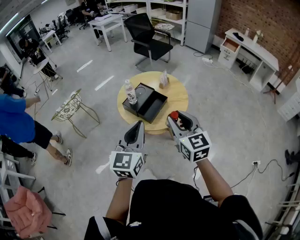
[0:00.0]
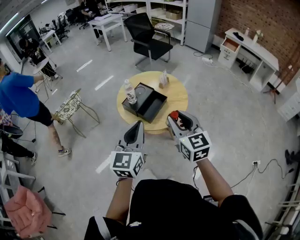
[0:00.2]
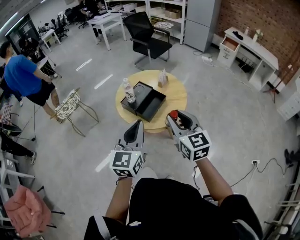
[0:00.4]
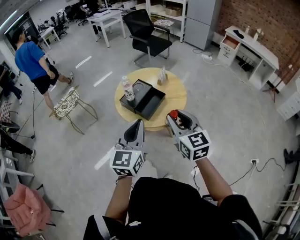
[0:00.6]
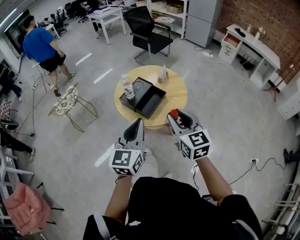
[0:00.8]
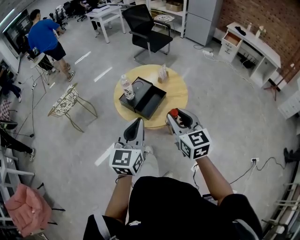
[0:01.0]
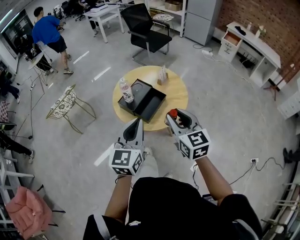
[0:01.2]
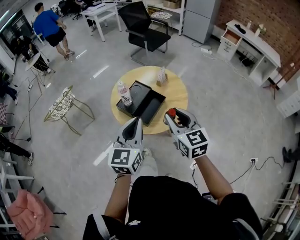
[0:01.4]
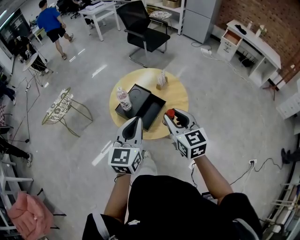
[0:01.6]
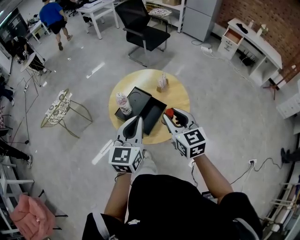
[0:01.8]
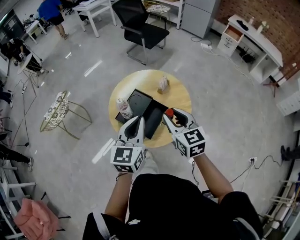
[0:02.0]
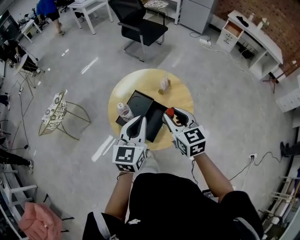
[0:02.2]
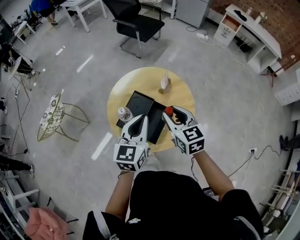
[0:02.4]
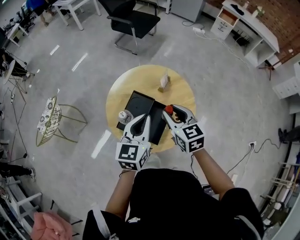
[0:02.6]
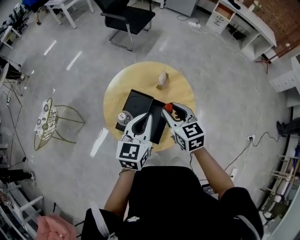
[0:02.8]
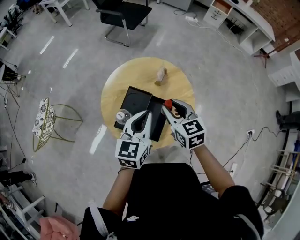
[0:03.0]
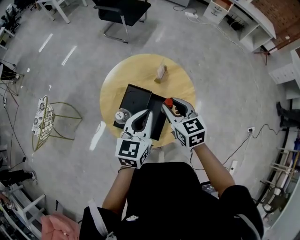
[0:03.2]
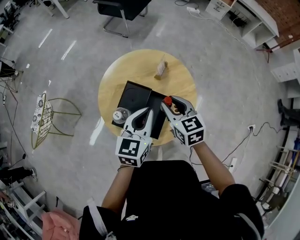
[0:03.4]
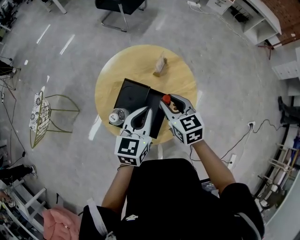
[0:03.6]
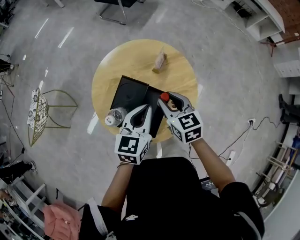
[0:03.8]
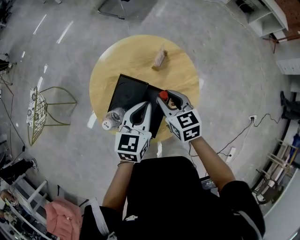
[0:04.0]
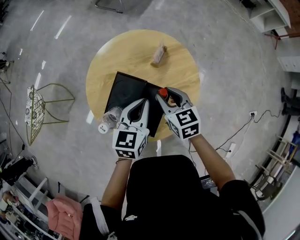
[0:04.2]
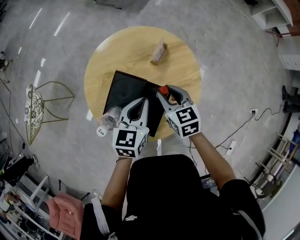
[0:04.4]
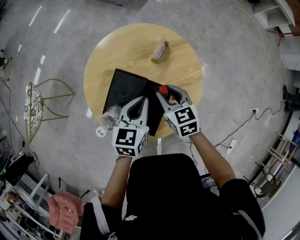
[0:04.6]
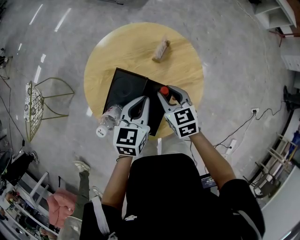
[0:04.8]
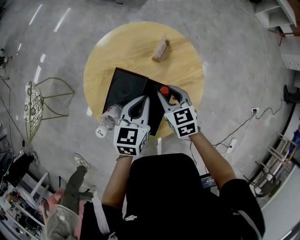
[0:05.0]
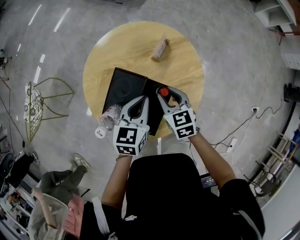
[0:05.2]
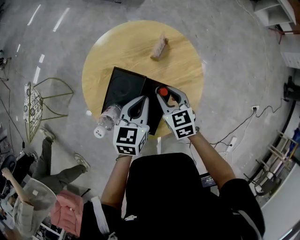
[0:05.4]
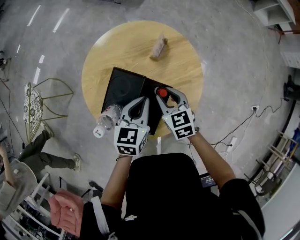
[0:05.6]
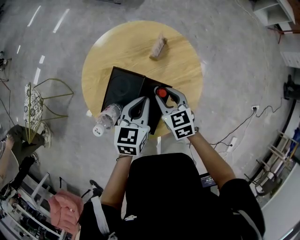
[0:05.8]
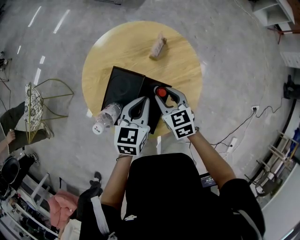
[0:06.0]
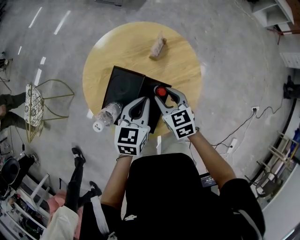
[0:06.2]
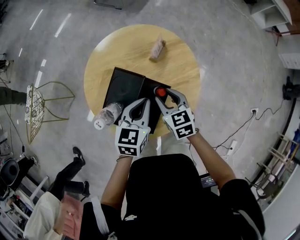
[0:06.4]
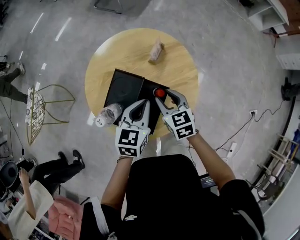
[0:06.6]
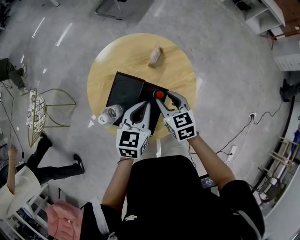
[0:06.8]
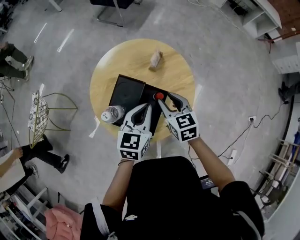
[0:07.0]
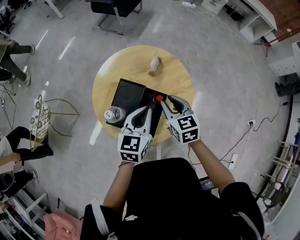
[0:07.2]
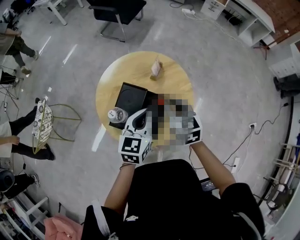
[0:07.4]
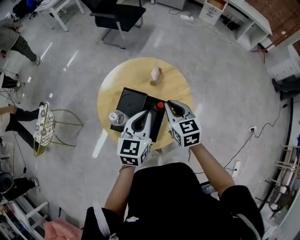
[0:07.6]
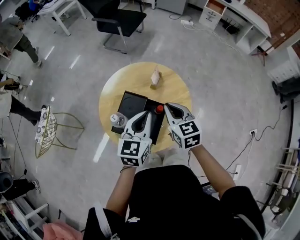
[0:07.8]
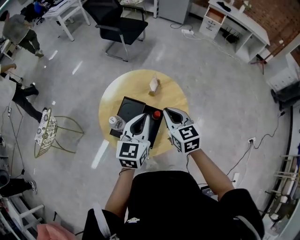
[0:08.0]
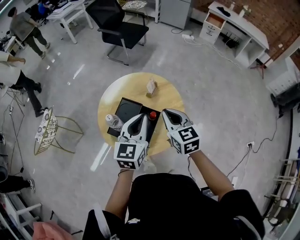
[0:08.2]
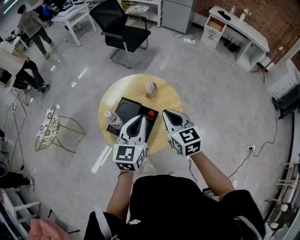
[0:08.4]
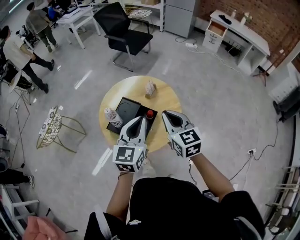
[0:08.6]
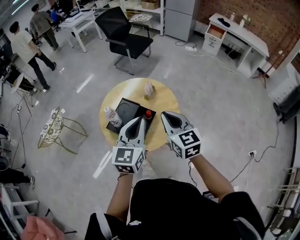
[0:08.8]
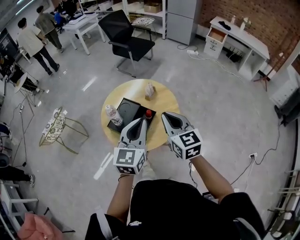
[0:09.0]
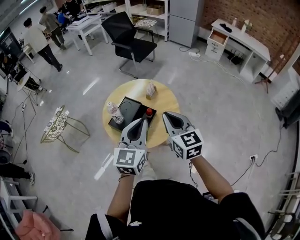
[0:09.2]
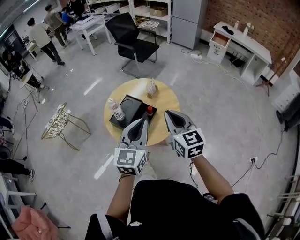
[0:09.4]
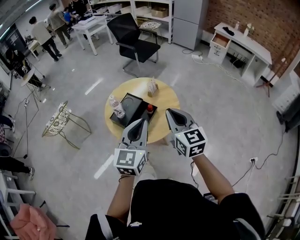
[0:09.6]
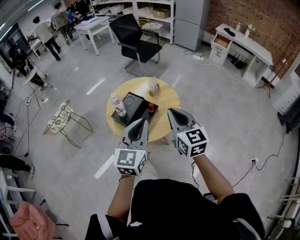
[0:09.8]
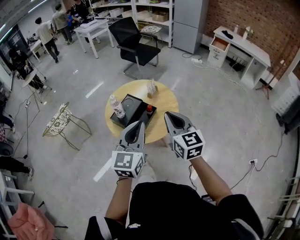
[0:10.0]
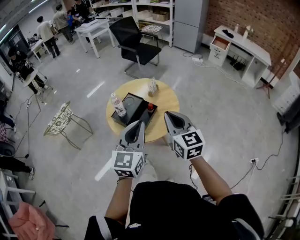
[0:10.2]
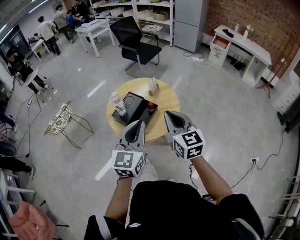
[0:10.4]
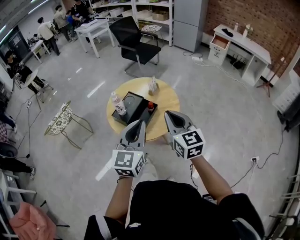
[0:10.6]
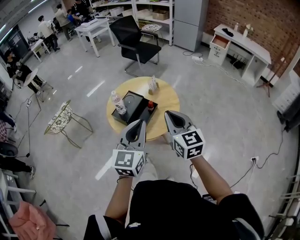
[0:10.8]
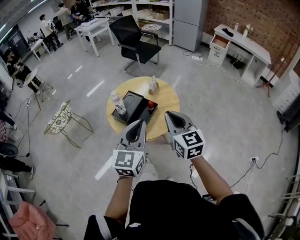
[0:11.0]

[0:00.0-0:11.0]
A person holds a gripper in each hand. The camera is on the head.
0:00.0 to 0:01.6: Both grippers travel together forward, some 15 cm.
0:01.6 to 0:03.2: The grippers both shift forward and downward by approximately 20 cm. The left gripper changes its angle by approximately 20 degrees.
0:03.2 to 0:04.8: The right gripper goes some 15 cm downward. Meanwhile the left gripper moves downward and forward, approximately 15 cm.
0:04.8 to 0:06.2: The grippers stay close to where they were, moving slightly.
0:06.2 to 0:07.8: The grippers both shift upward by approximately 15 cm. The right gripper closes its fingers.
0:07.8 to 0:09.4: The left gripper moves backward and upward, approximately 25 cm; the right gripper travels backward, upward and to the right by about 25 cm, and rotates roughly 20 degrees.
0:09.4 to 0:11.0: Both grippers travel together backward, approximately 5 cm.

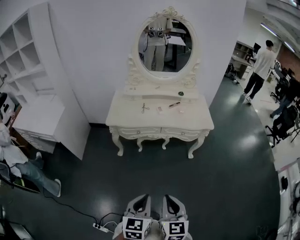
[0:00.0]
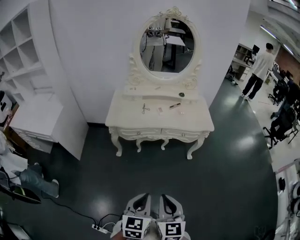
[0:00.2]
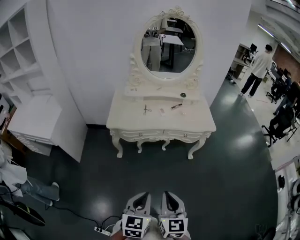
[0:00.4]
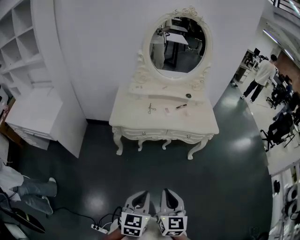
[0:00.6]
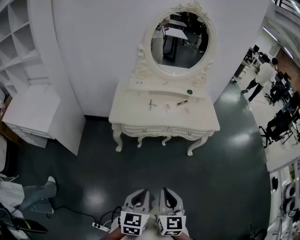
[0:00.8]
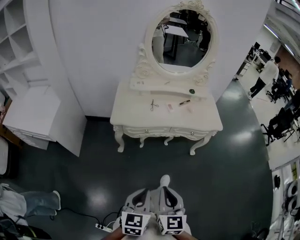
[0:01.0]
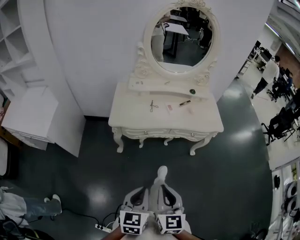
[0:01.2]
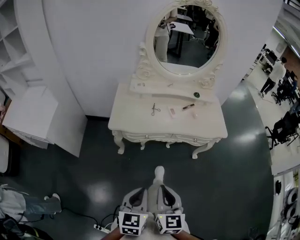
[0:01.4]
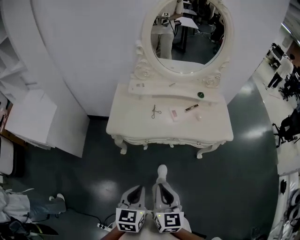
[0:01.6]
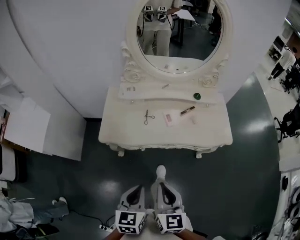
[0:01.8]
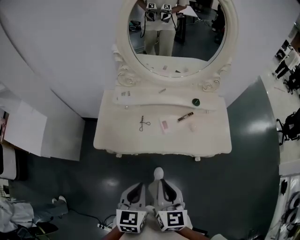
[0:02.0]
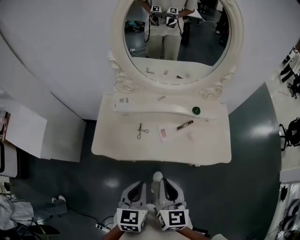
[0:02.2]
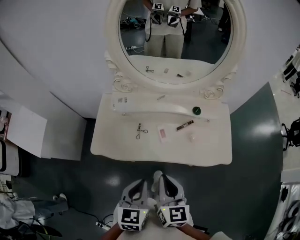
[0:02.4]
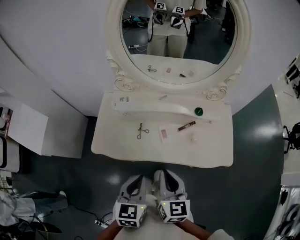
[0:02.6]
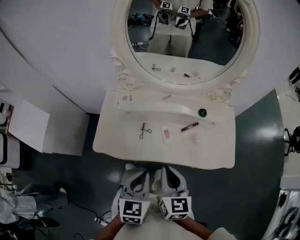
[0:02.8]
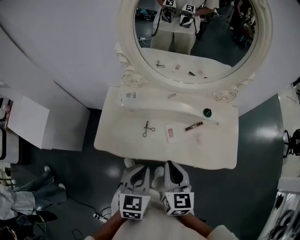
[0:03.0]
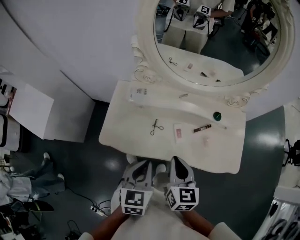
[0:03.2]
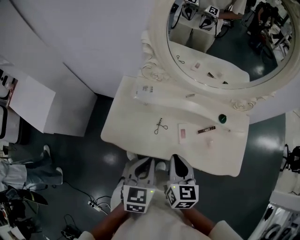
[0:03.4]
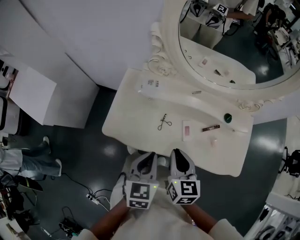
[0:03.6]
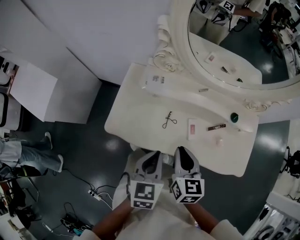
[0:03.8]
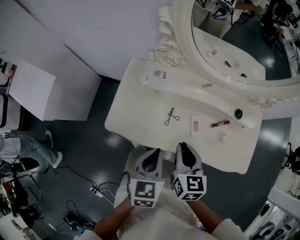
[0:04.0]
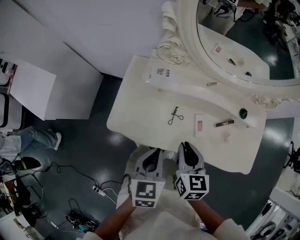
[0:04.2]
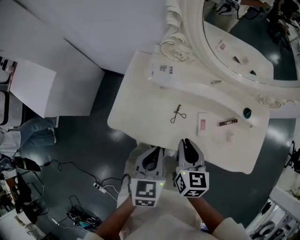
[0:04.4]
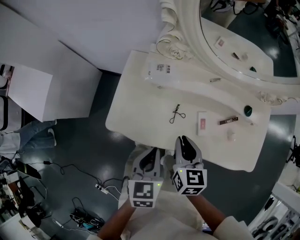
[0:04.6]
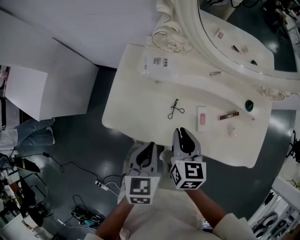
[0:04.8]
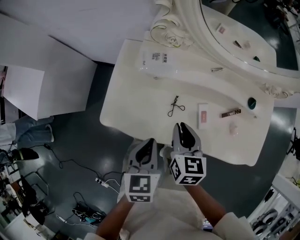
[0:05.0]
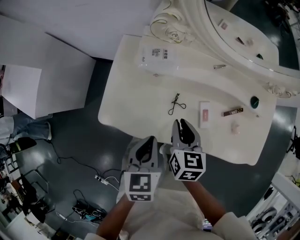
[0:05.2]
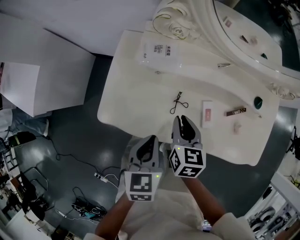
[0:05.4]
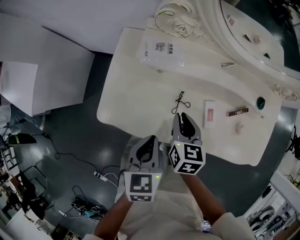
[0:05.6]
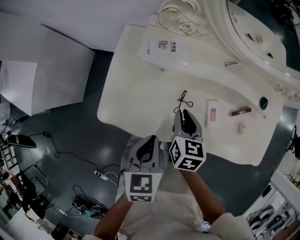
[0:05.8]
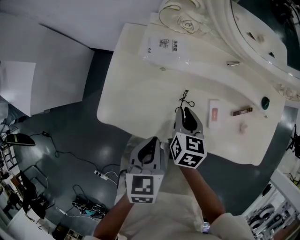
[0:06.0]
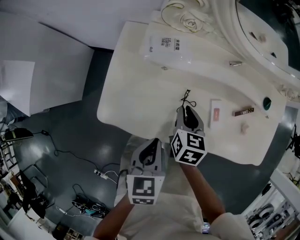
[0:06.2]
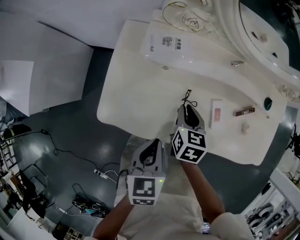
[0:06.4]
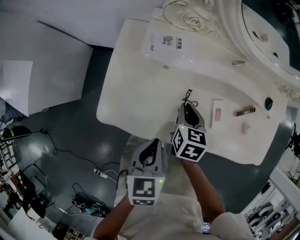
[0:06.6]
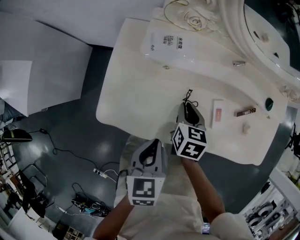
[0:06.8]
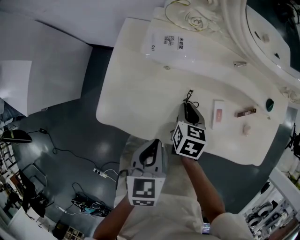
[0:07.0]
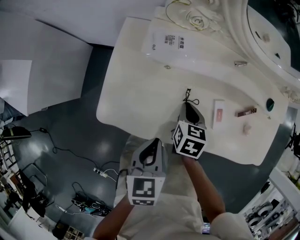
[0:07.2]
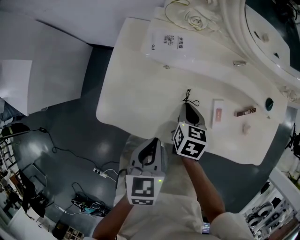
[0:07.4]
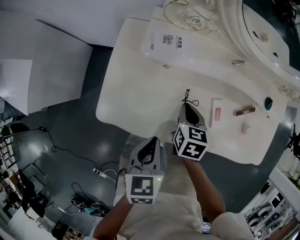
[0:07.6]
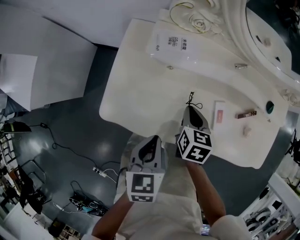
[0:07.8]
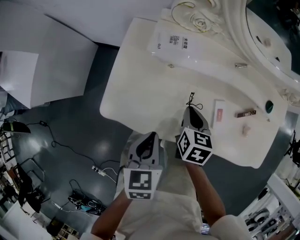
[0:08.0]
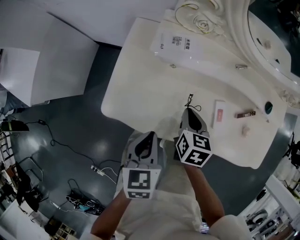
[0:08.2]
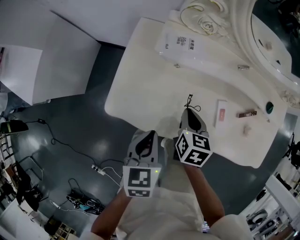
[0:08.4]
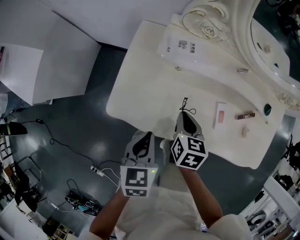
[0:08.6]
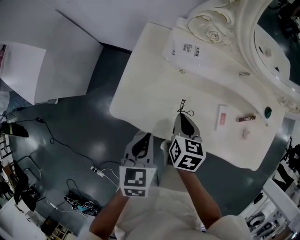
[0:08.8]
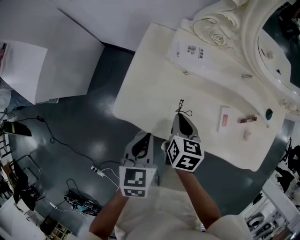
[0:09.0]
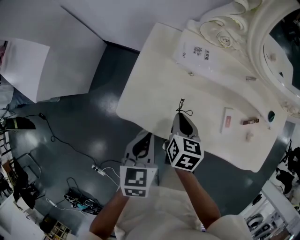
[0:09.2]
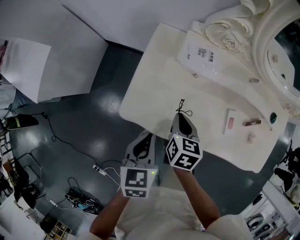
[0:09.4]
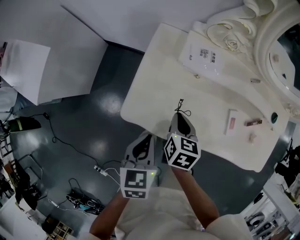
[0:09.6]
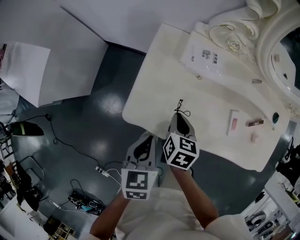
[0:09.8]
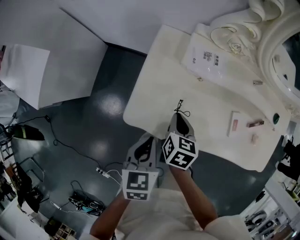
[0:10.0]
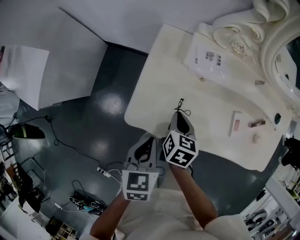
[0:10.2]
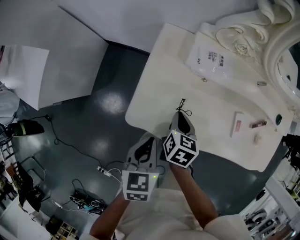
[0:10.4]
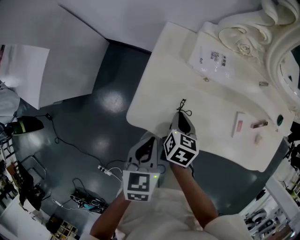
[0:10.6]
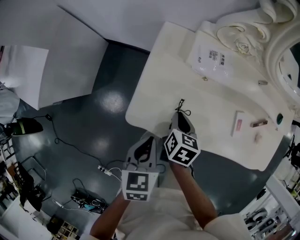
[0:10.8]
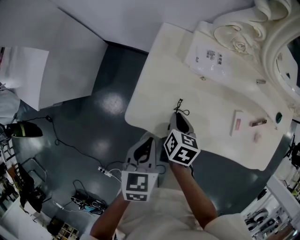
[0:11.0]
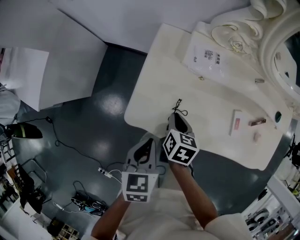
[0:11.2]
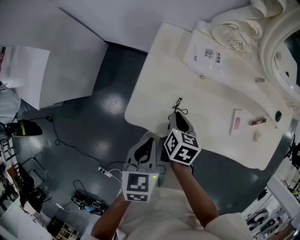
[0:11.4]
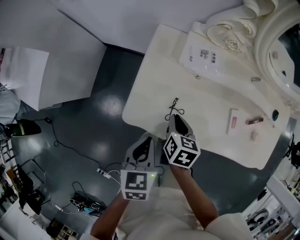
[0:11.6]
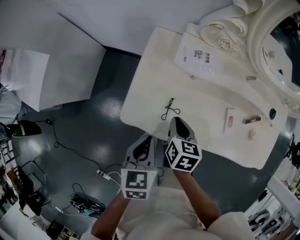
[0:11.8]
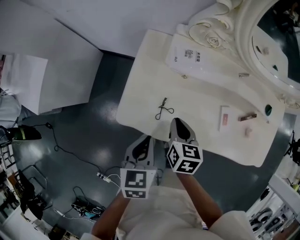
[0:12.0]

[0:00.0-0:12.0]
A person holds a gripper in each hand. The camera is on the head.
0:00.0 to 0:01.6: The two grippers go some 30 cm forward and to the left.
0:01.6 to 0:03.0: Both grippers move forward, some 30 cm.
0:03.0 to 0:04.4: The right gripper goes approximately 15 cm downward, forward and to the left; the left gripper is displaced to the left, downward and forward by about 15 cm.
0:04.4 to 0:06.0: The right gripper is displaced downward and forward by approximately 15 cm; the left gripper goes roughly 10 cm downward.
0:06.0 to 0:07.6: The grippers stay close to where they were, moving slightly.
0:07.6 to 0:09.0: Both grippers move to the left, roughly 10 cm.
0:09.0 to 0:10.4: Both grippers move to the left, approximately 5 cm.
0:10.4 to 0:12.0: The right gripper heads upward, covering some 5 cm.

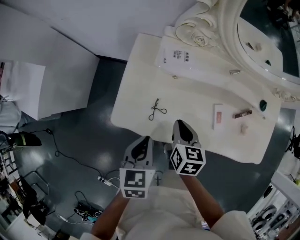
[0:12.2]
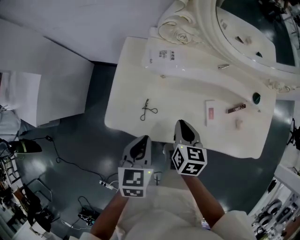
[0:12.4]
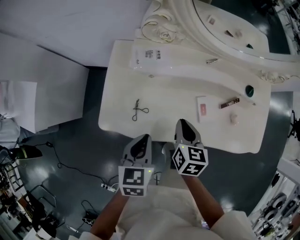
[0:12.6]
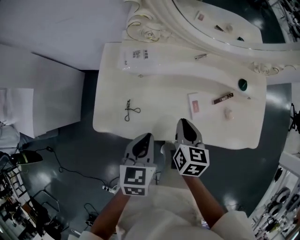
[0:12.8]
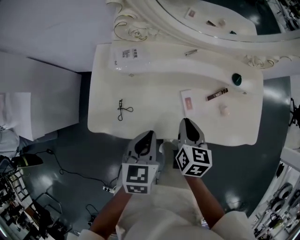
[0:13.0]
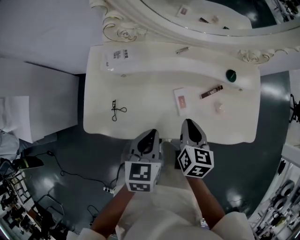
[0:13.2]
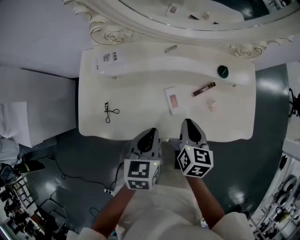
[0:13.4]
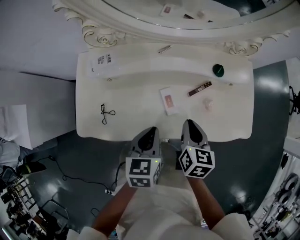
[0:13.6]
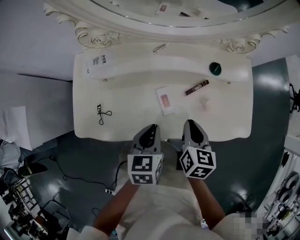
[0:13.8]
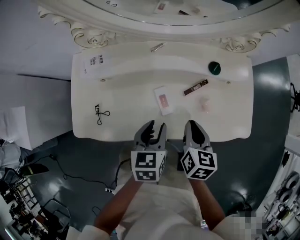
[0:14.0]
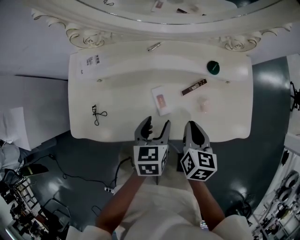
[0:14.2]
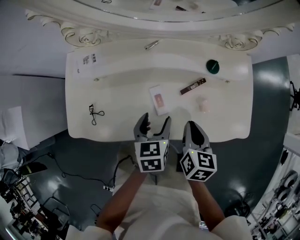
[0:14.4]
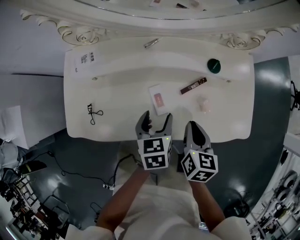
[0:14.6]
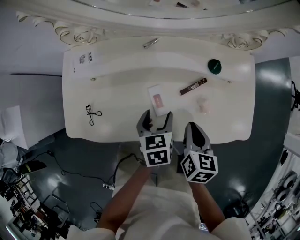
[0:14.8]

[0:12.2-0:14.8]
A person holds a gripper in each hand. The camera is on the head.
0:12.2 to 0:13.4: Both grippers travel together to the right, some 20 cm.
0:13.4 to 0:14.8: The right gripper moves to the right, some 10 cm. The left gripper goes about 15 cm downward, to the right and forward, and opens up.
